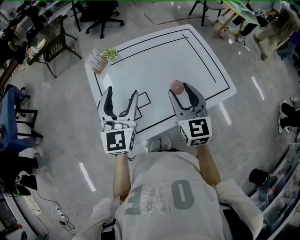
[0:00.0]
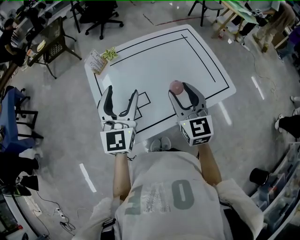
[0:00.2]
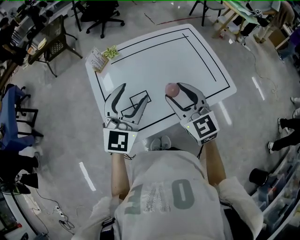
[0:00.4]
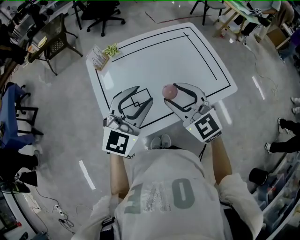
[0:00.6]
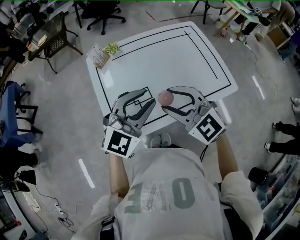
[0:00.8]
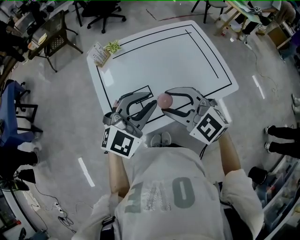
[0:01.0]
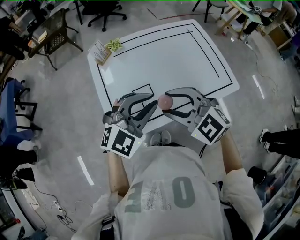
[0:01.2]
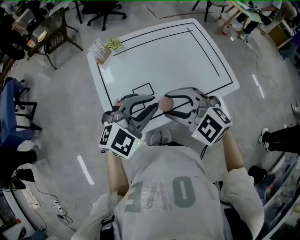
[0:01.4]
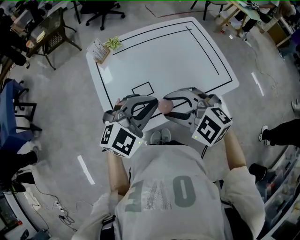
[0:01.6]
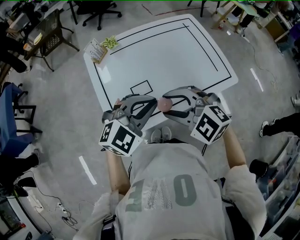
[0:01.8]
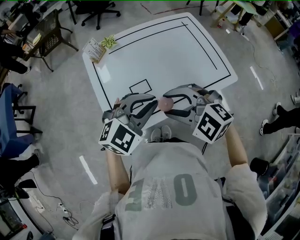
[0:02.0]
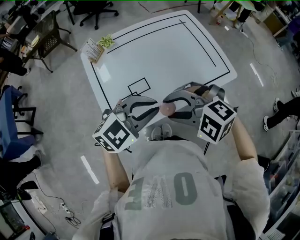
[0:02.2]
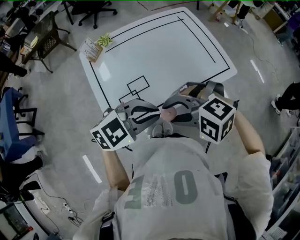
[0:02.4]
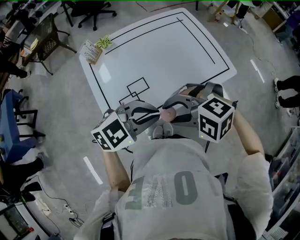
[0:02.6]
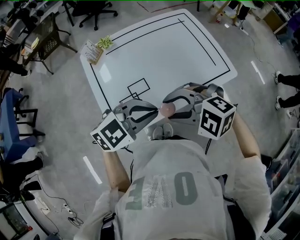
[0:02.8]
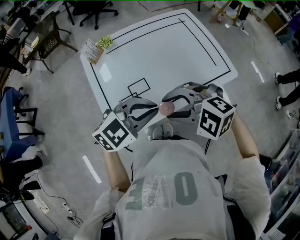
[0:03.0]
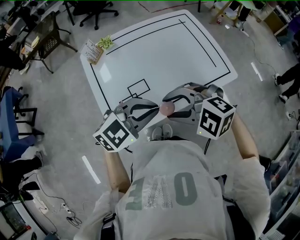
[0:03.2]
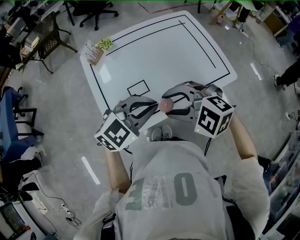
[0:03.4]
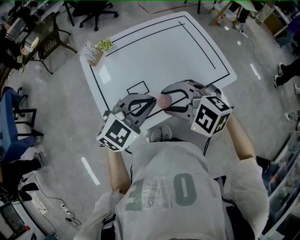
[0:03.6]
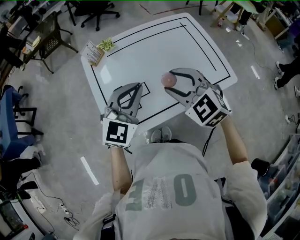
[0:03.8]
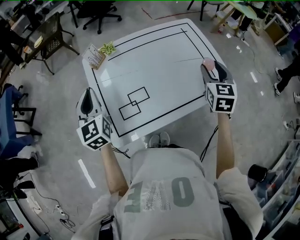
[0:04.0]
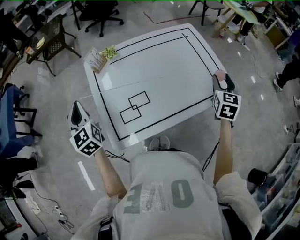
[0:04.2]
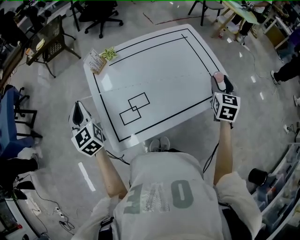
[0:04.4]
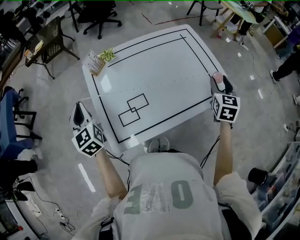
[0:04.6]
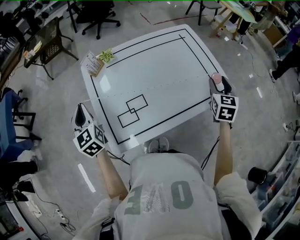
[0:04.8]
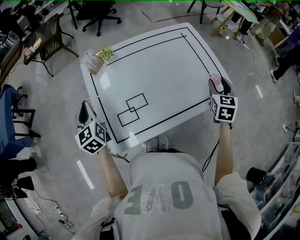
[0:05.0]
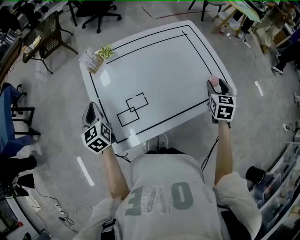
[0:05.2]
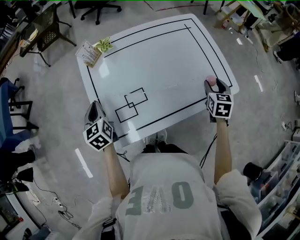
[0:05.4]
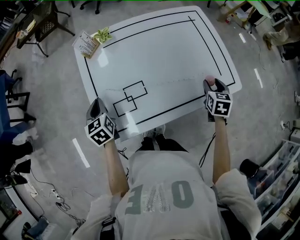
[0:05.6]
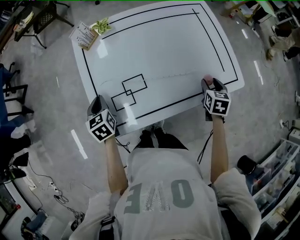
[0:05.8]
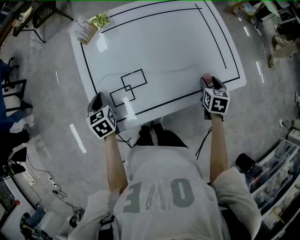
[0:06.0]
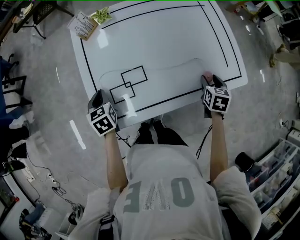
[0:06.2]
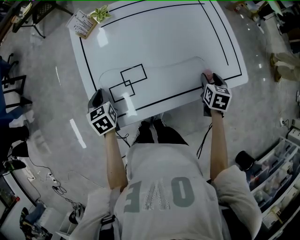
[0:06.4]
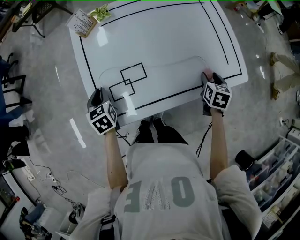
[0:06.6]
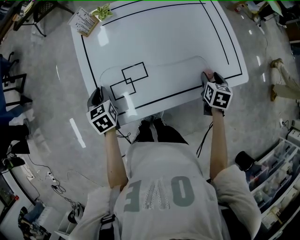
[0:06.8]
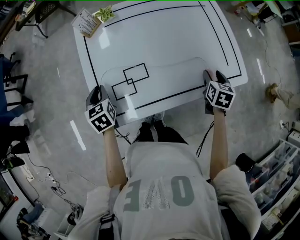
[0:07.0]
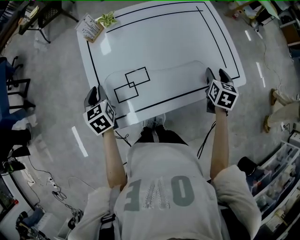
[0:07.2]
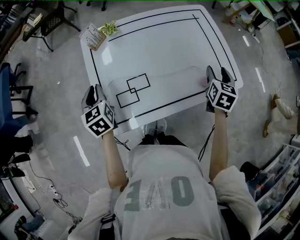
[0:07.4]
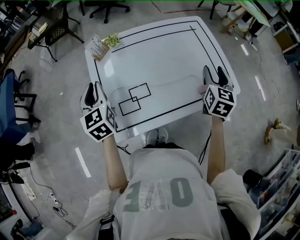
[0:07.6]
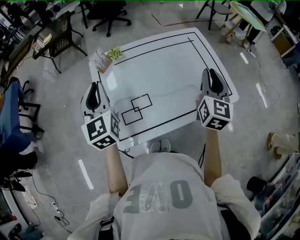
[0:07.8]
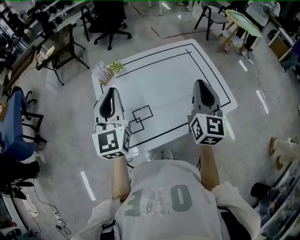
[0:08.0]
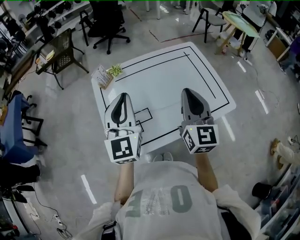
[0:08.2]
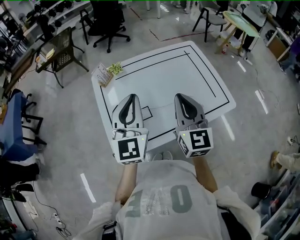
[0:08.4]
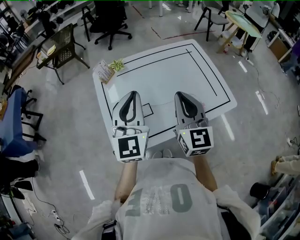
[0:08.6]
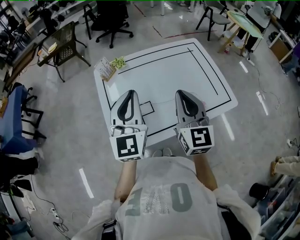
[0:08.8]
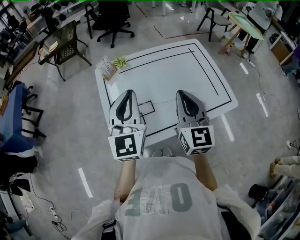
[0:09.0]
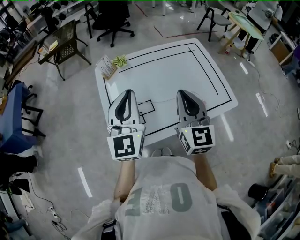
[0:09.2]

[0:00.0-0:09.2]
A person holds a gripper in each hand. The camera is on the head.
0:00.0 to 0:01.6: The left gripper heads backward and to the right, covering some 10 cm, swivels about 50 degrees, and closes. Meanwhile the right gripper heads backward and to the left, covering roughly 15 cm, and changes its angle by approximately 70 degrees.
0:01.6 to 0:03.0: The left gripper turns by about 20 degrees.
0:03.0 to 0:04.6: The right gripper changes place by roughly 35 cm, and swivels about 90 degrees. Meanwhile the left gripper shifts by some 30 cm, and swivels about 90 degrees.
0:04.6 to 0:06.2: The two grippers go approximately 20 cm downward. The left gripper points its fingers about 30 degrees further downward. Meanwhile the right gripper turns by about 30 degrees.
0:06.2 to 0:07.6: The grippers both shift upward by about 20 cm. The right gripper tips its fingers upward by some 30 degrees; the left gripper swivels approximately 30 degrees.
0:07.6 to 0:09.2: The right gripper moves to the left, backward and upward, about 20 cm, turns by about 30 degrees, and closes up; the left gripper heads to the right, upward and backward, covering some 20 cm, and changes its angle by roughly 30 degrees.

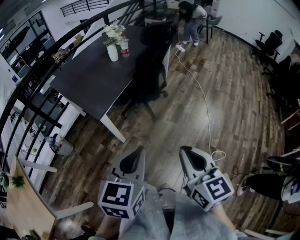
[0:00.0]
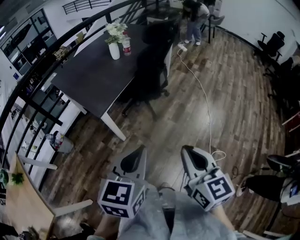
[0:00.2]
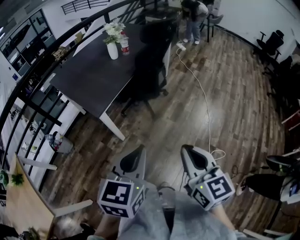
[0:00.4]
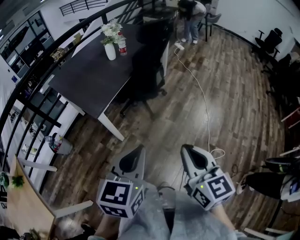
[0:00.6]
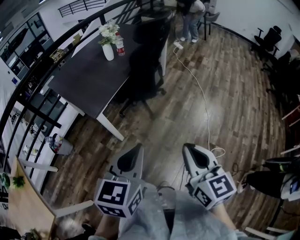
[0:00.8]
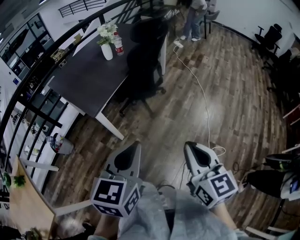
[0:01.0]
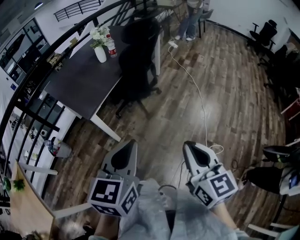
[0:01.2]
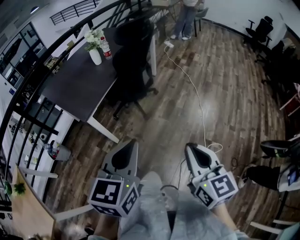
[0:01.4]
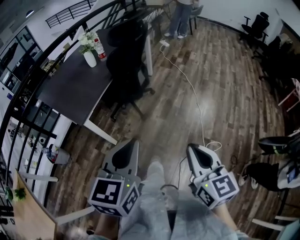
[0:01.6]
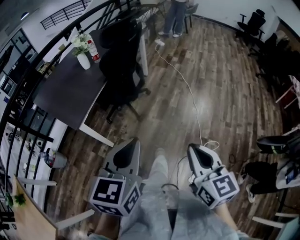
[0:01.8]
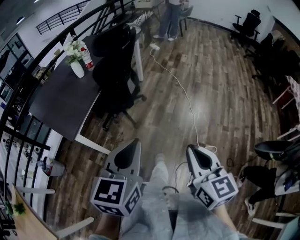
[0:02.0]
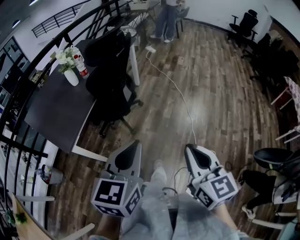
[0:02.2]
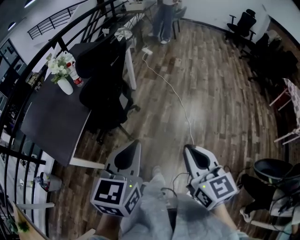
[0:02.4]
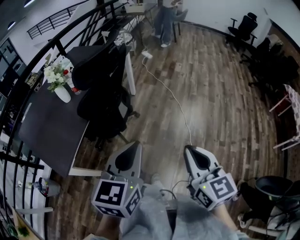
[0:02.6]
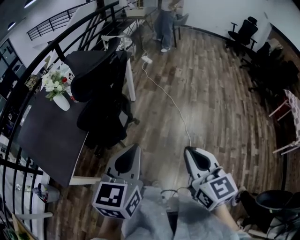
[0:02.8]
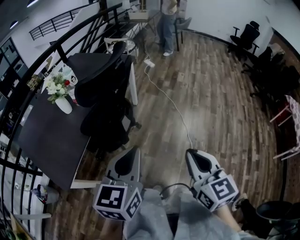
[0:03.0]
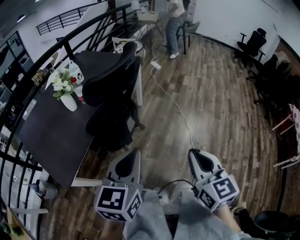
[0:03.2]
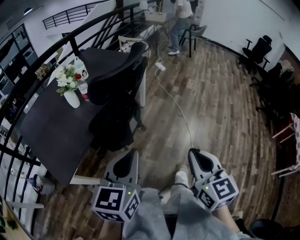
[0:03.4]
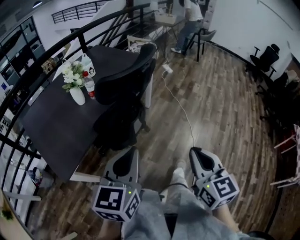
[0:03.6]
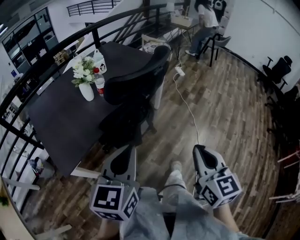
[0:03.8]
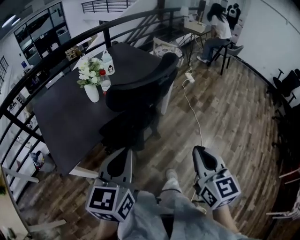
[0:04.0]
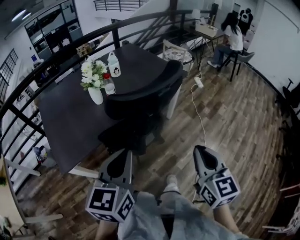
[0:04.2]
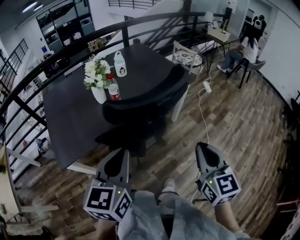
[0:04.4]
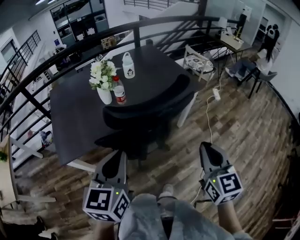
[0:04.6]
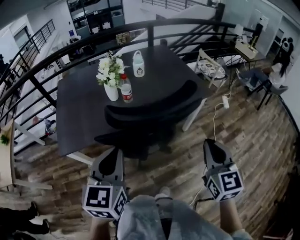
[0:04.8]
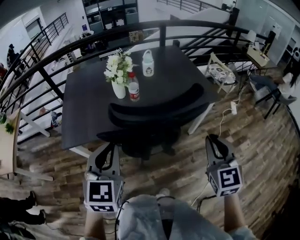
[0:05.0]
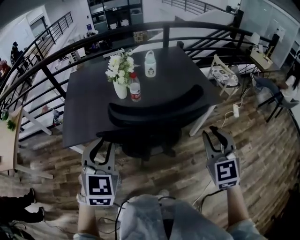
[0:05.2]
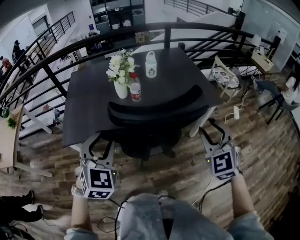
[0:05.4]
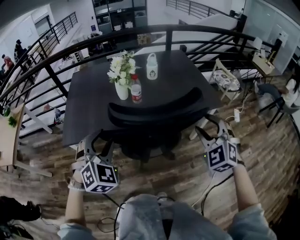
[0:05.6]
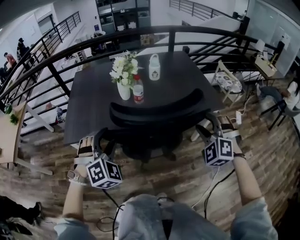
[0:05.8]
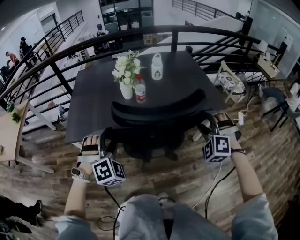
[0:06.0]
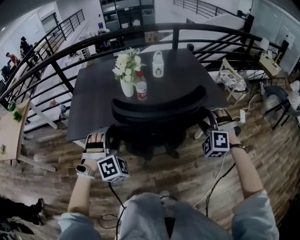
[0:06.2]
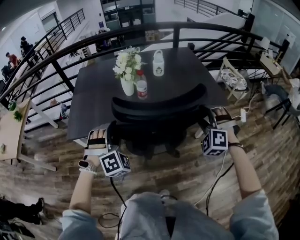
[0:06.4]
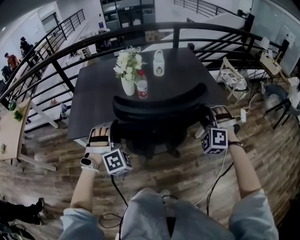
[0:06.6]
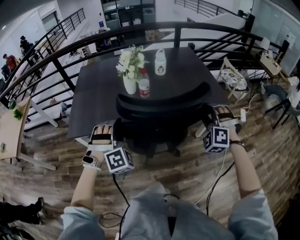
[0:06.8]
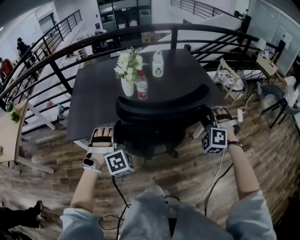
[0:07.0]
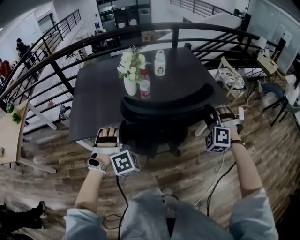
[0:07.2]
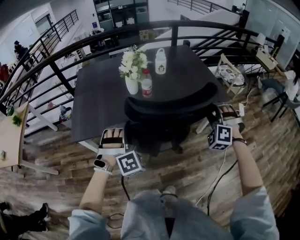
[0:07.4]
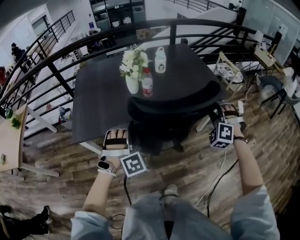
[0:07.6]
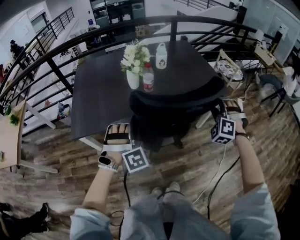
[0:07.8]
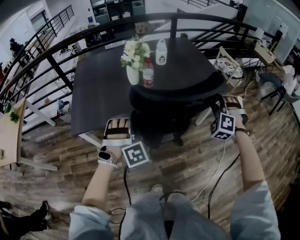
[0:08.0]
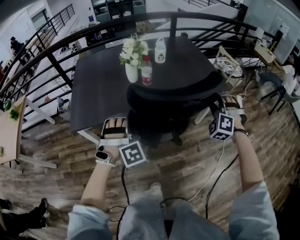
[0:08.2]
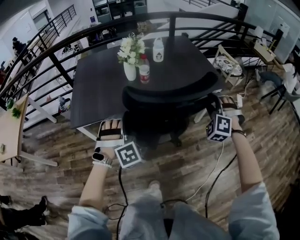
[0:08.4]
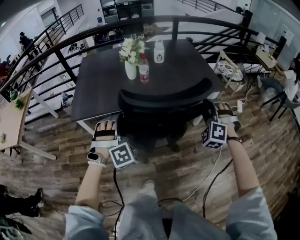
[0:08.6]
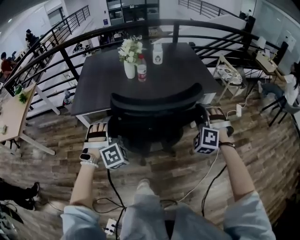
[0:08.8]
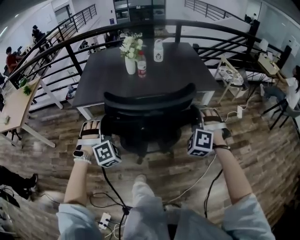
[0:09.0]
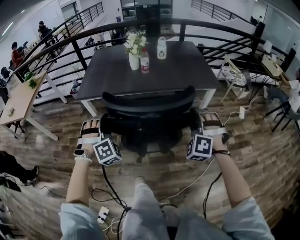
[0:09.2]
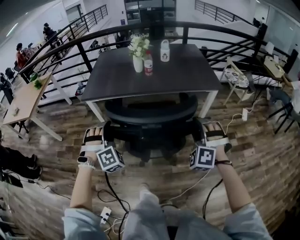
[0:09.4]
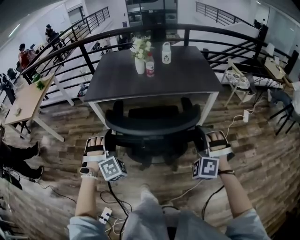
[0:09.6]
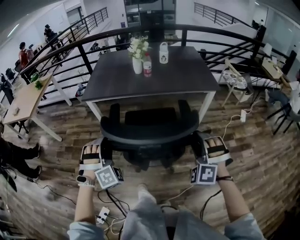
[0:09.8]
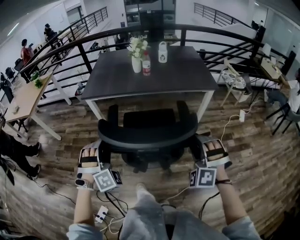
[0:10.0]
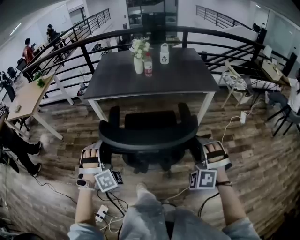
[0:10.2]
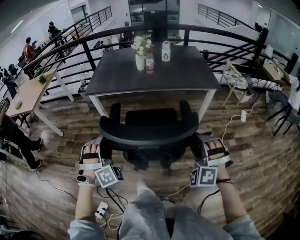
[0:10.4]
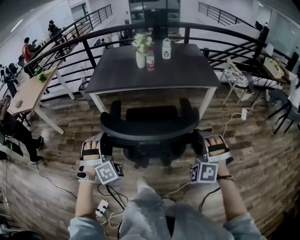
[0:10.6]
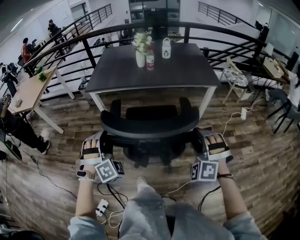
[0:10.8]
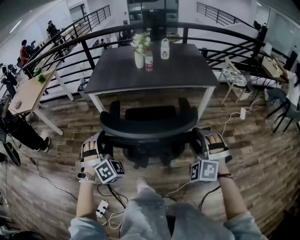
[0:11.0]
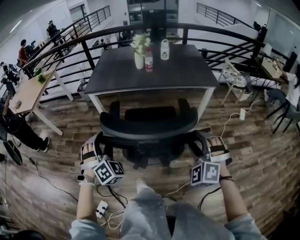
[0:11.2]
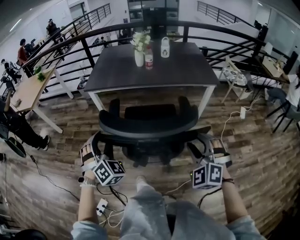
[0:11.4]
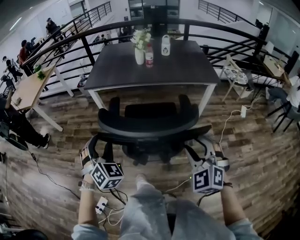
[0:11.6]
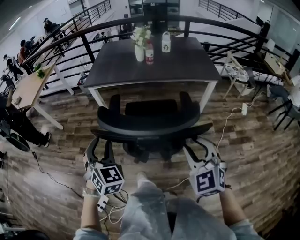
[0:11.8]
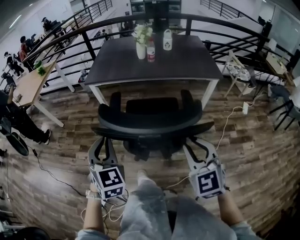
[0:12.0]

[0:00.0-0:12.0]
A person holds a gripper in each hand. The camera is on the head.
0:00.0 to 0:01.6: The grippers both shift to the right by roughly 10 cm.
0:01.6 to 0:03.0: The grippers both shift forward by about 35 cm.
0:03.0 to 0:04.4: The right gripper shifts by approximately 30 cm, and turns by approximately 30 degrees, while the left gripper ends up about 15 cm from where it was, and changes its angle by roughly 40 degrees.
0:04.4 to 0:06.0: The right gripper shifts by some 25 cm, rolls counterclockwise, seen from behind, by some 90 degrees, and opens. Meanwhile the left gripper shifts by approximately 15 cm, twists roughly 70 degrees clockwise, seen from behind, and opens its fingers.
0:06.0 to 0:07.6: The grippers make only small movements.
0:07.6 to 0:09.0: The two grippers go some 20 cm backward.
0:09.0 to 0:10.4: The two grippers go approximately 20 cm backward.
0:10.4 to 0:12.0: The right gripper shifts some 5 cm to the left, twists roughly 50 degrees clockwise, seen from behind, and closes up. The left gripper moves upward and backward, some 10 cm, twists roughly 60 degrees counterclockwise, seen from behind, and closes.

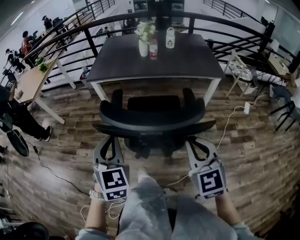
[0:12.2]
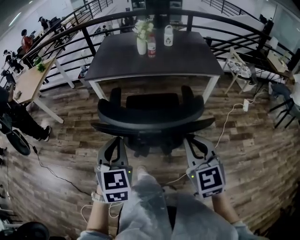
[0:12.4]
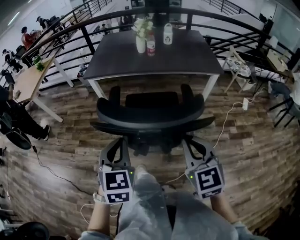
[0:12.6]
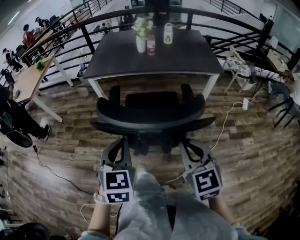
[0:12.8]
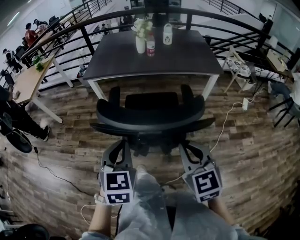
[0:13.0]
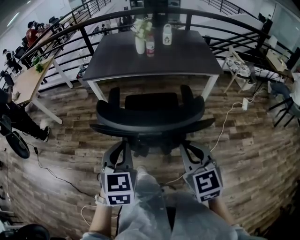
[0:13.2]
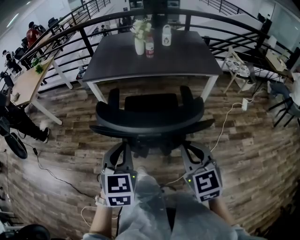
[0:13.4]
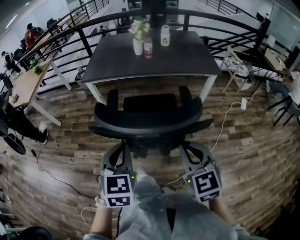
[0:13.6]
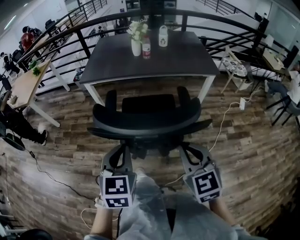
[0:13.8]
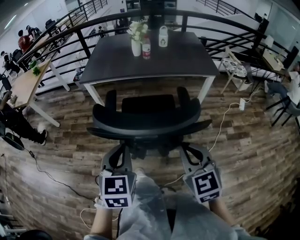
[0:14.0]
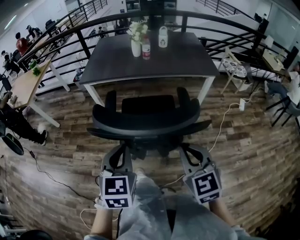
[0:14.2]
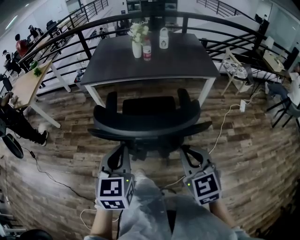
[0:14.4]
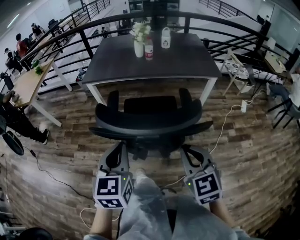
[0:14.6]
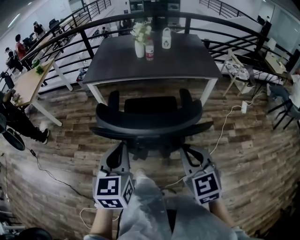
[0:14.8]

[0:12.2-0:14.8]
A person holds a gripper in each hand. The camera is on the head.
0:12.2 to 0:13.4: The left gripper changes place by about 5 cm.
0:13.4 to 0:14.8: The grippers stay close to where they were, moving slightly.
